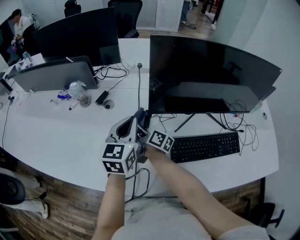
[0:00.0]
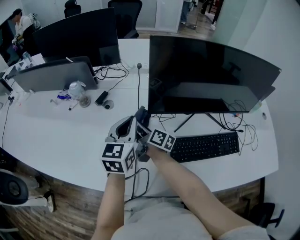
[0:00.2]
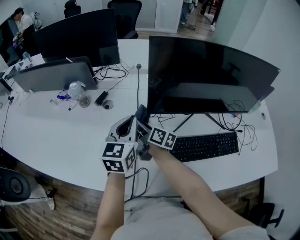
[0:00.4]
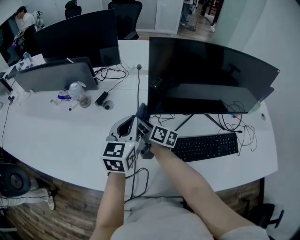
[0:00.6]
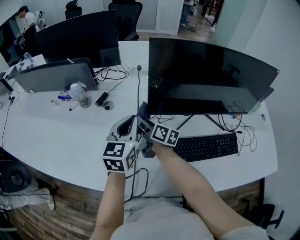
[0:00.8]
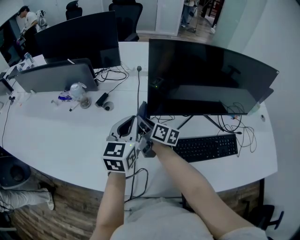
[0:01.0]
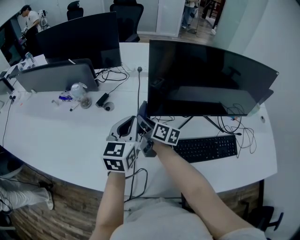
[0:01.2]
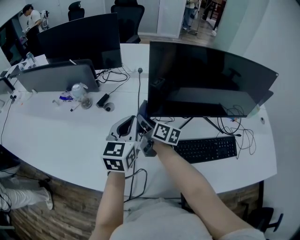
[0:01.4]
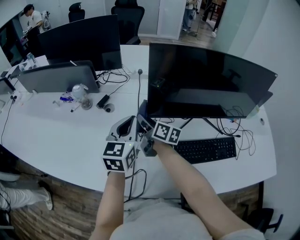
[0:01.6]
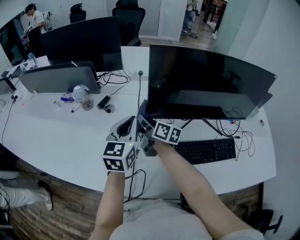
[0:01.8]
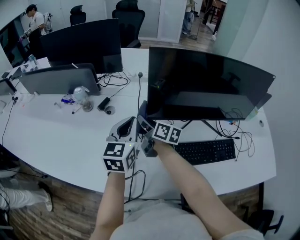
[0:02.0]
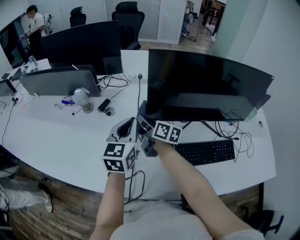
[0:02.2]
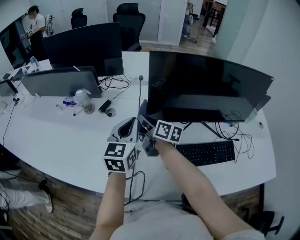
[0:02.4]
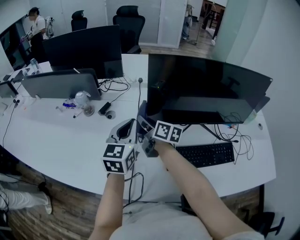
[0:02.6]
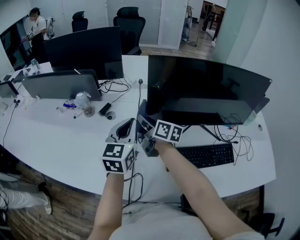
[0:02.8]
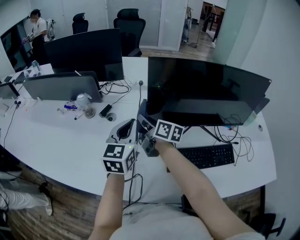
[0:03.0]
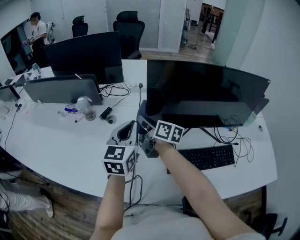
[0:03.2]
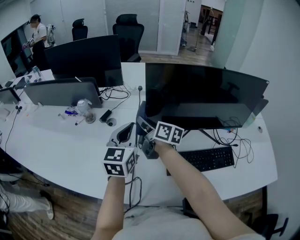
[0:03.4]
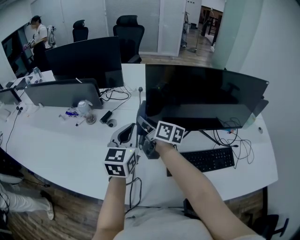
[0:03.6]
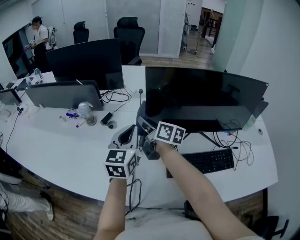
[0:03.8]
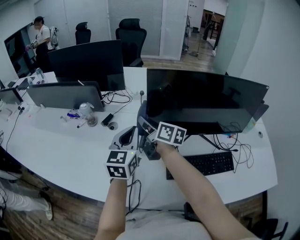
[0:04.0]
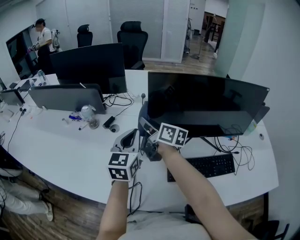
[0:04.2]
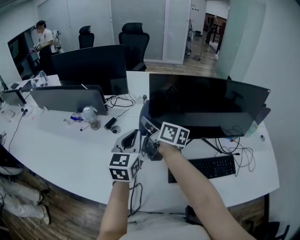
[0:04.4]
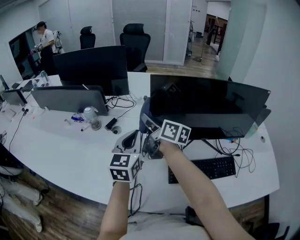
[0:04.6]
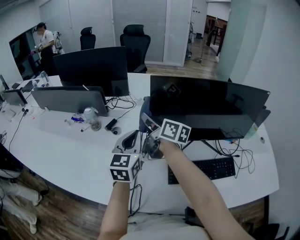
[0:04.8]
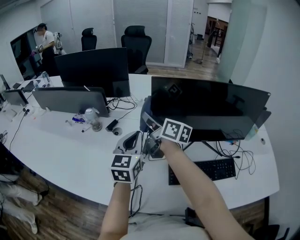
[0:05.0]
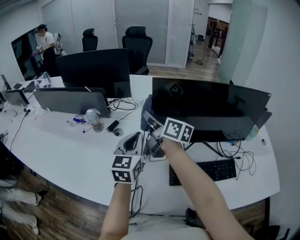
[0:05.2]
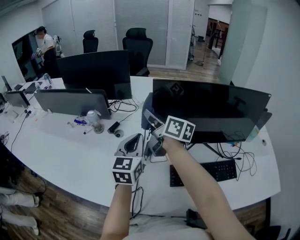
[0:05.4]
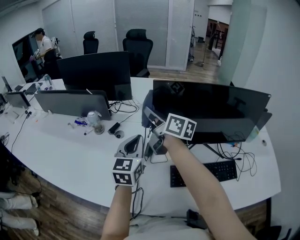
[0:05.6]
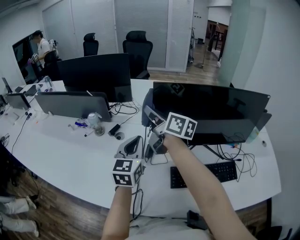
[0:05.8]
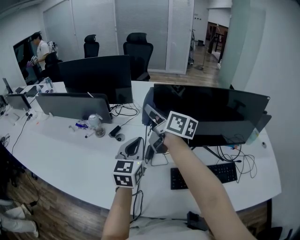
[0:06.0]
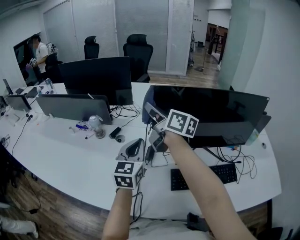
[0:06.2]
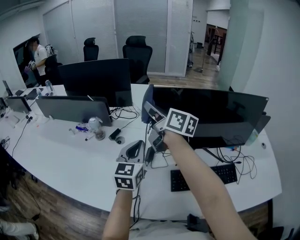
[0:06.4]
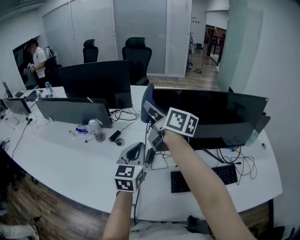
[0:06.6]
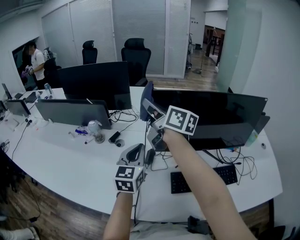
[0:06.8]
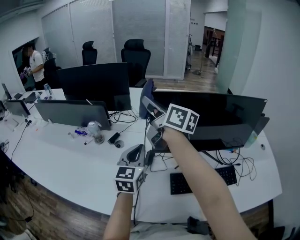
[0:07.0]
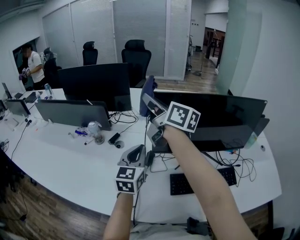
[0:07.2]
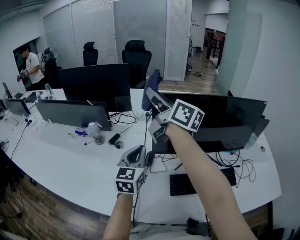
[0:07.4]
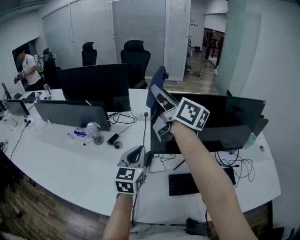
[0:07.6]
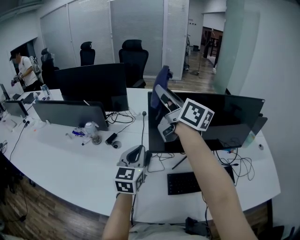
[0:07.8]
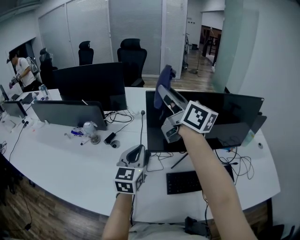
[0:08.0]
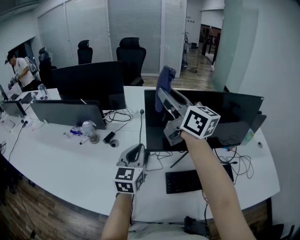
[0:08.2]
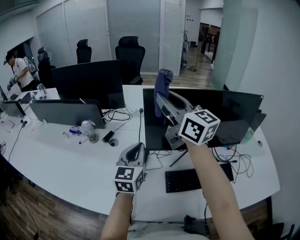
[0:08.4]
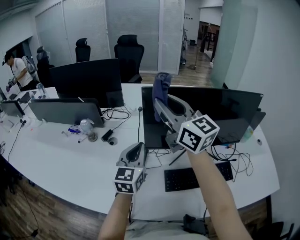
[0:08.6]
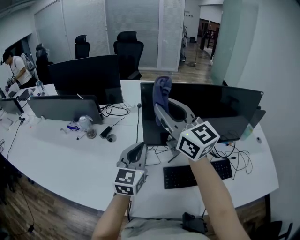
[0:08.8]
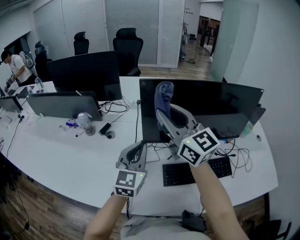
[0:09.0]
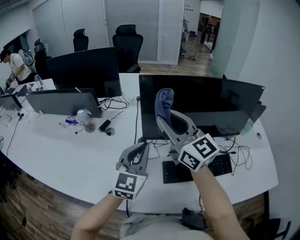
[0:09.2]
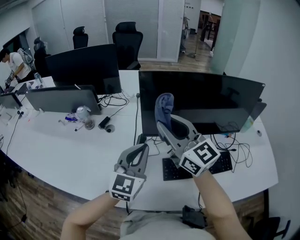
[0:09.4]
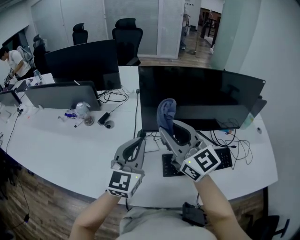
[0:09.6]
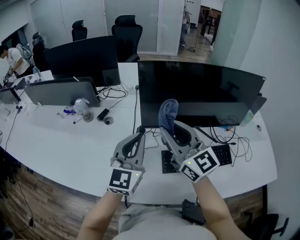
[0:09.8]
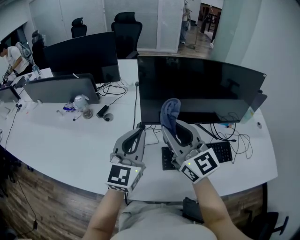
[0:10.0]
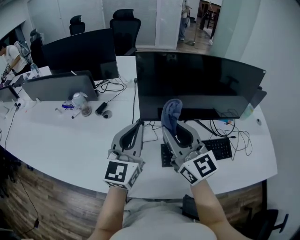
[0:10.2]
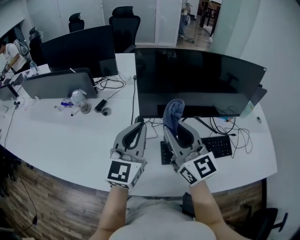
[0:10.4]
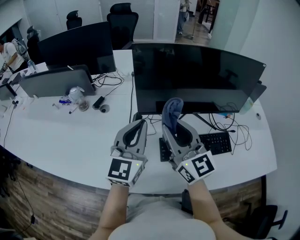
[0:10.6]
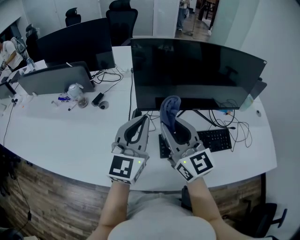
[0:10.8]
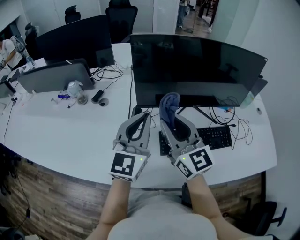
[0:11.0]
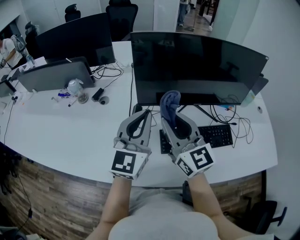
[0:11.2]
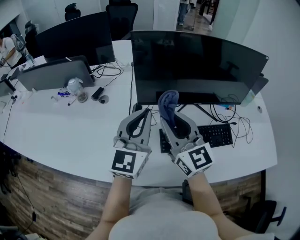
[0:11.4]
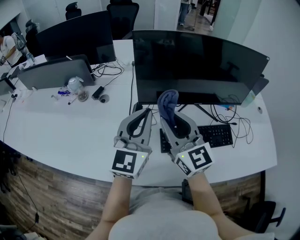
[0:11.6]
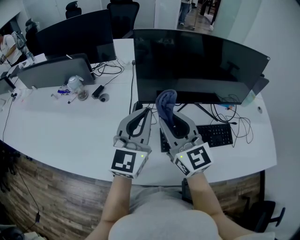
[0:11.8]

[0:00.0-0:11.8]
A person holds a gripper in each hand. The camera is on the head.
0:00.0 to 0:01.4: The right gripper shifts by about 5 cm.
0:01.4 to 0:03.0: The right gripper shifts roughly 5 cm upward.
0:03.0 to 0:04.4: The right gripper heads upward, covering approximately 10 cm.
0:04.4 to 0:06.0: The right gripper moves upward, roughly 10 cm.
0:06.0 to 0:07.4: The right gripper is displaced upward by approximately 10 cm.
0:07.4 to 0:08.8: The right gripper goes some 10 cm backward, and swivels some 40 degrees.
0:08.8 to 0:10.4: The right gripper moves downward and backward, some 15 cm; the left gripper goes some 5 cm backward.
0:10.4 to 0:11.8: The grippers stay close to where they were, moving slightly.

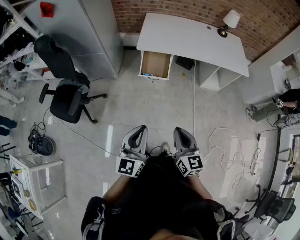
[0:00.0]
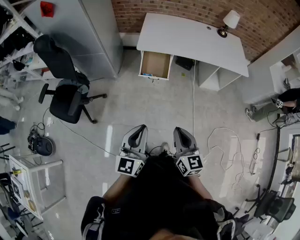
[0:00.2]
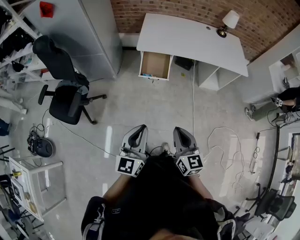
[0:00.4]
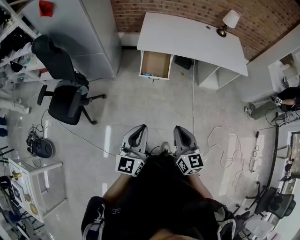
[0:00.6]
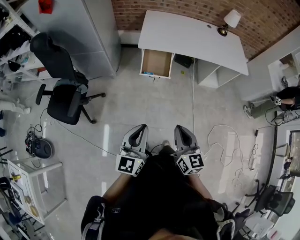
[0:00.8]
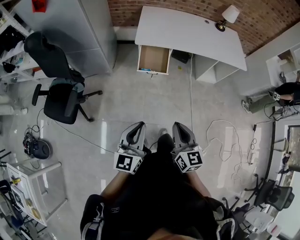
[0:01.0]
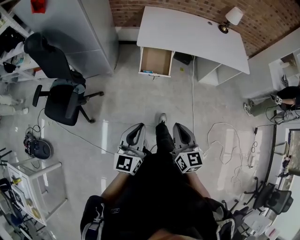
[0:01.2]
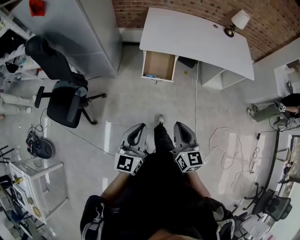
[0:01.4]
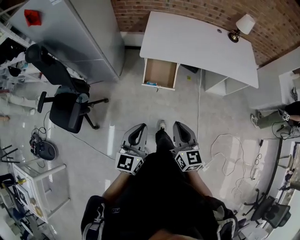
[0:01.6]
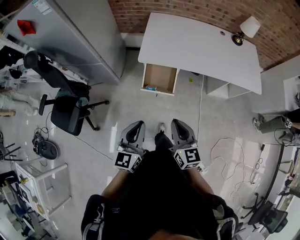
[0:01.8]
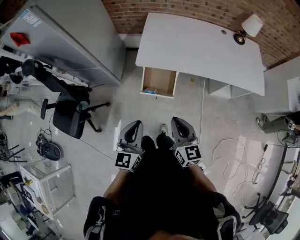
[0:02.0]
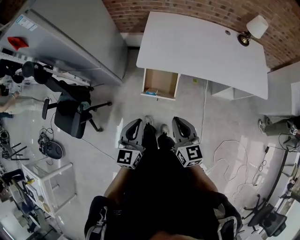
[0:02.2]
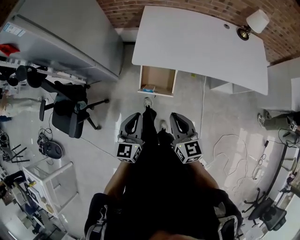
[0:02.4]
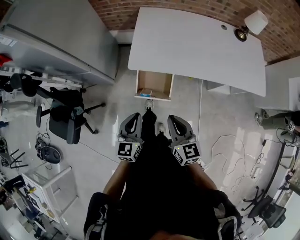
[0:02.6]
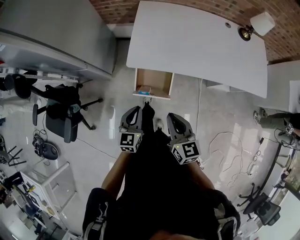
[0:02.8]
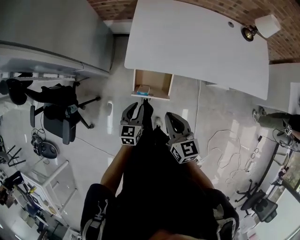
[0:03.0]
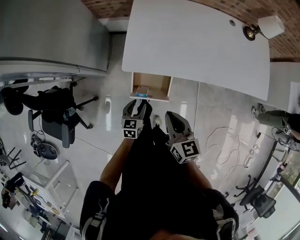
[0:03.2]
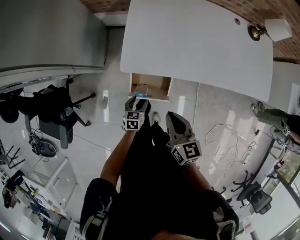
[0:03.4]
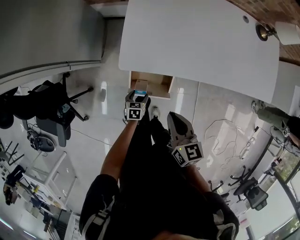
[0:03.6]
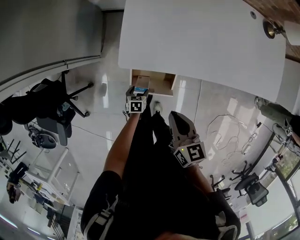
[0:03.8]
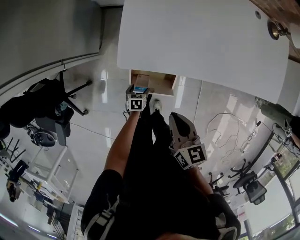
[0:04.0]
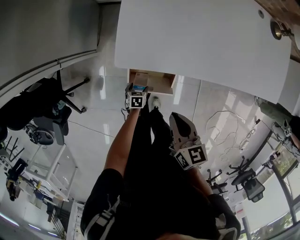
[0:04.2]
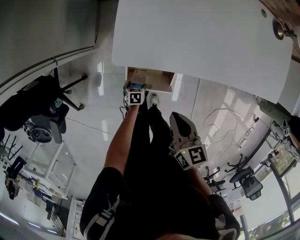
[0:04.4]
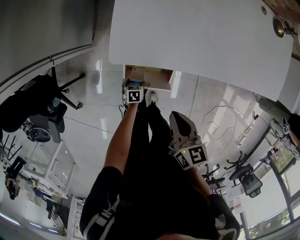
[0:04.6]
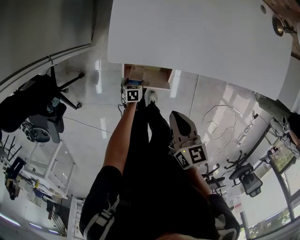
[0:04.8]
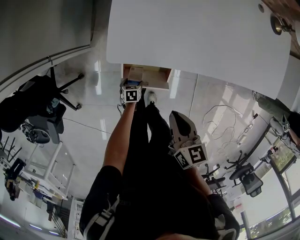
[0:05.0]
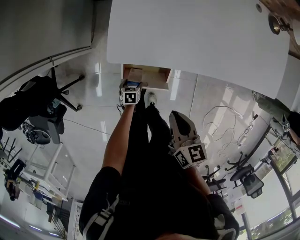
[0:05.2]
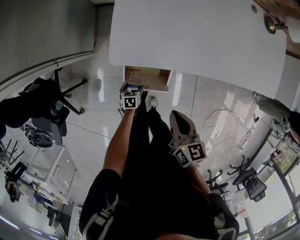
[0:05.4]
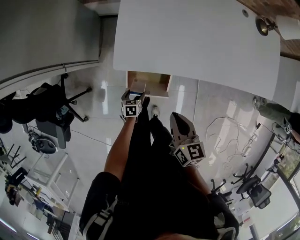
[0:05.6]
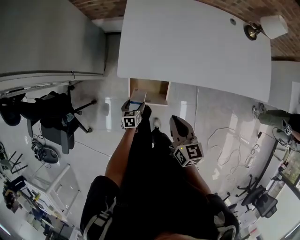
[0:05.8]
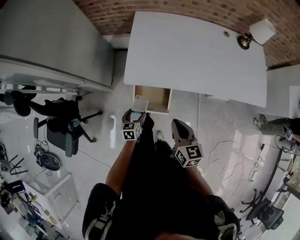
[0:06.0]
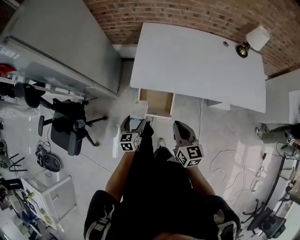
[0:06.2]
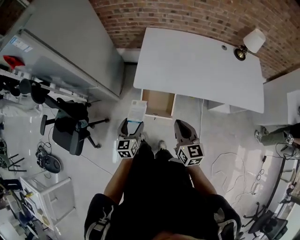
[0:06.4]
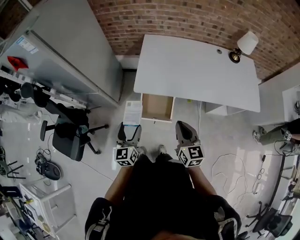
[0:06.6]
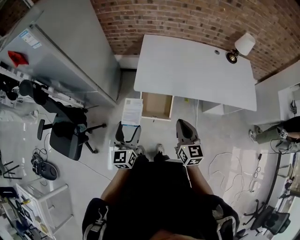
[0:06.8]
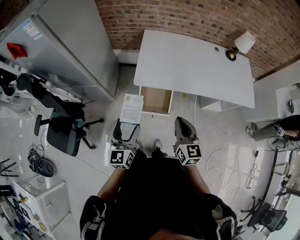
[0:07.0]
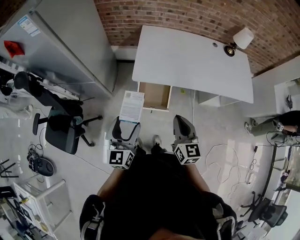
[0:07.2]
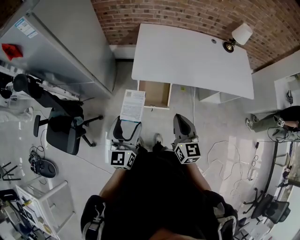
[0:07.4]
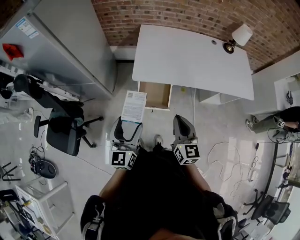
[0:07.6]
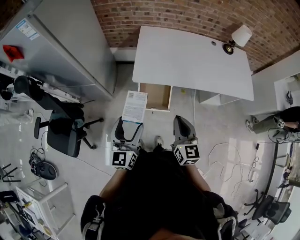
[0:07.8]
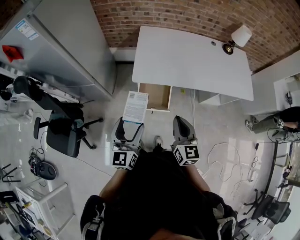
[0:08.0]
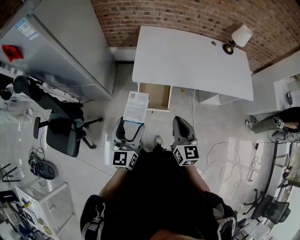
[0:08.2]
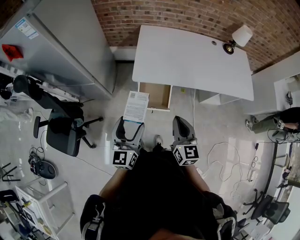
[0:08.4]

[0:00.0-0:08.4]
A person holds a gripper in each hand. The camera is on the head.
0:00.0 to 0:01.4: The right gripper is displaced forward and to the left by roughly 15 cm; the left gripper travels forward, to the left and downward by about 15 cm.
0:01.4 to 0:02.8: The left gripper shifts about 40 cm forward and downward. Meanwhile the right gripper moves forward, some 35 cm.
0:02.8 to 0:04.2: The right gripper moves forward and downward, roughly 20 cm, and turns by approximately 20 degrees; the left gripper shifts approximately 50 cm downward, angles its fingers downward, by approximately 50 degrees, and opens up.
0:04.2 to 0:05.6: The left gripper heads upward, covering approximately 5 cm. Meanwhile the right gripper changes place by approximately 5 cm.
0:05.6 to 0:07.0: The right gripper travels upward and backward by some 25 cm, and changes its angle by approximately 30 degrees. Meanwhile the left gripper goes about 50 cm upward, and points its fingers approximately 50 degrees further upward.
0:07.0 to 0:08.4: There are only small adjustments of the grippers.

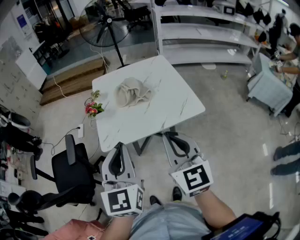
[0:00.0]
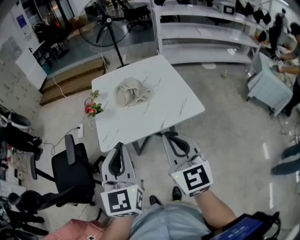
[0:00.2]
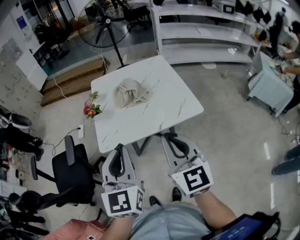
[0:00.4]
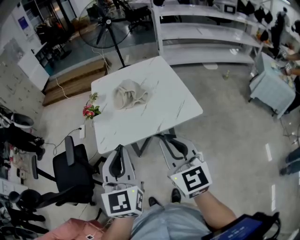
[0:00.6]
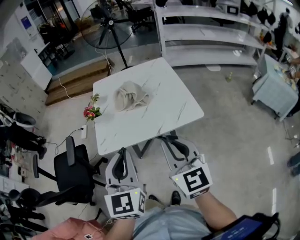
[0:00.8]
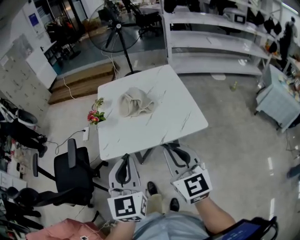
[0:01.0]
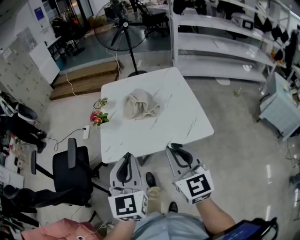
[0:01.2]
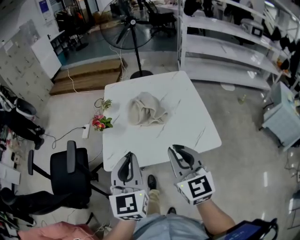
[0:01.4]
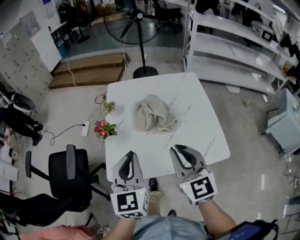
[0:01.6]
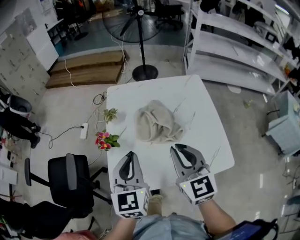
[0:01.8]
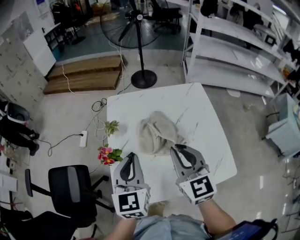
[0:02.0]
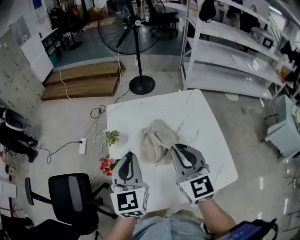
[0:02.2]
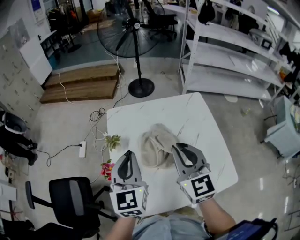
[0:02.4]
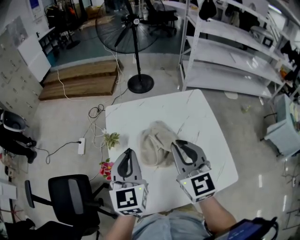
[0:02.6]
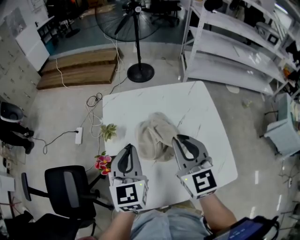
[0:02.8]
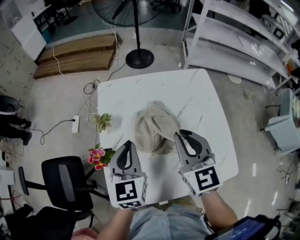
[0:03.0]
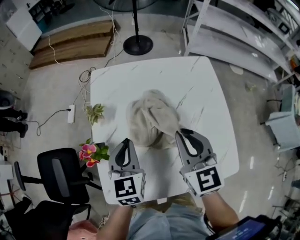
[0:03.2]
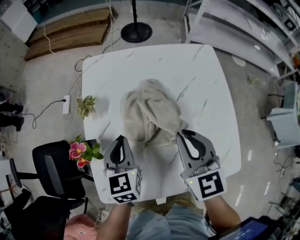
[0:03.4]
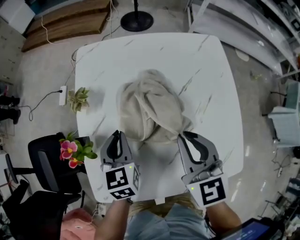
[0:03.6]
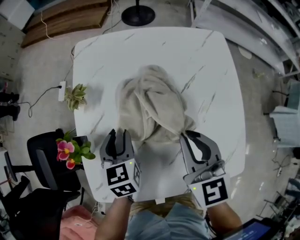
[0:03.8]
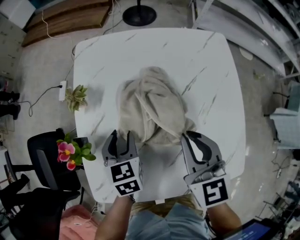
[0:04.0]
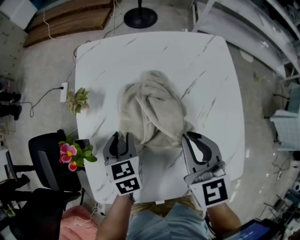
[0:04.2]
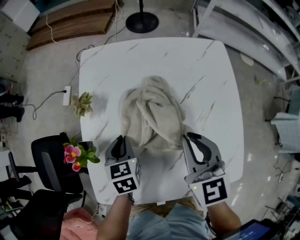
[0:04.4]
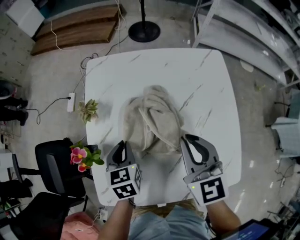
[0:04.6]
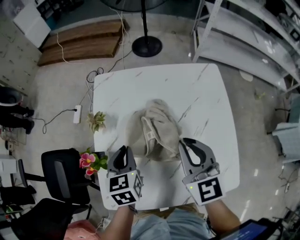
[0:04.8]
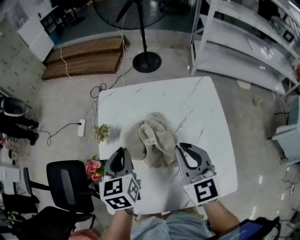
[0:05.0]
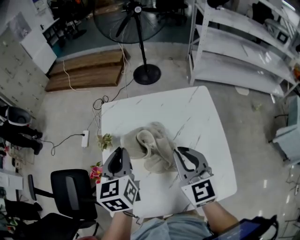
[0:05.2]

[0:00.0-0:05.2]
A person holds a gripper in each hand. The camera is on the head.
0:00.0 to 0:01.8: Both grippers travel together forward, about 30 cm.
0:01.8 to 0:03.4: The right gripper shifts roughly 15 cm forward and downward, while the left gripper goes approximately 20 cm downward and forward.
0:03.4 to 0:05.2: The left gripper heads upward, covering about 15 cm, and opens, then closes again. Meanwhile the right gripper travels upward by approximately 5 cm.
